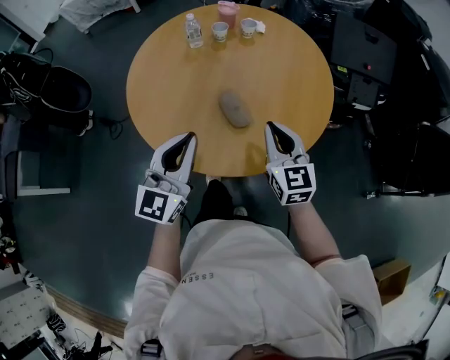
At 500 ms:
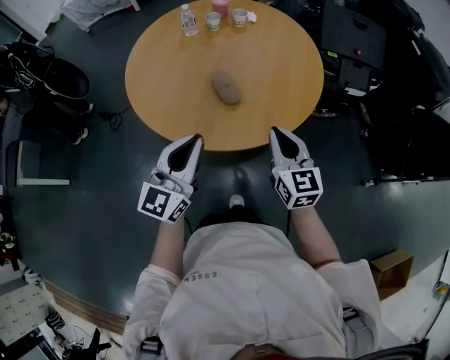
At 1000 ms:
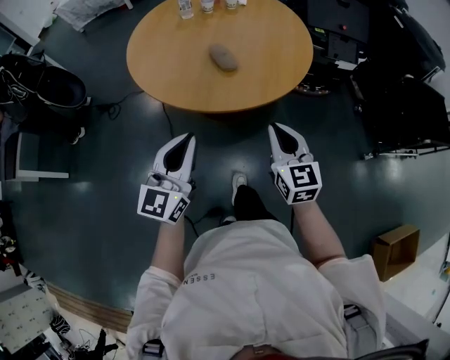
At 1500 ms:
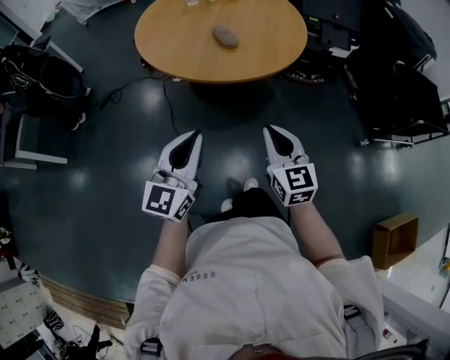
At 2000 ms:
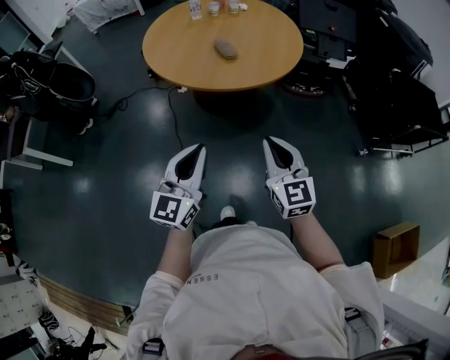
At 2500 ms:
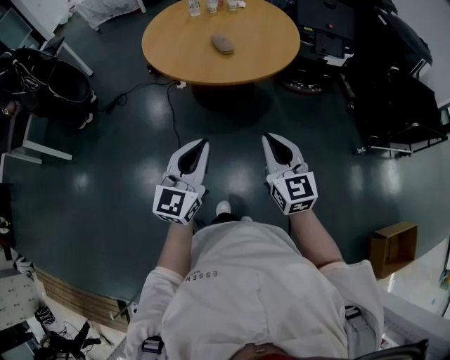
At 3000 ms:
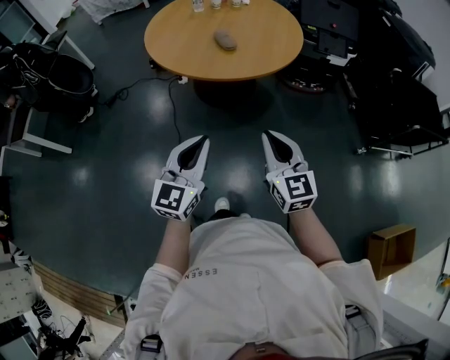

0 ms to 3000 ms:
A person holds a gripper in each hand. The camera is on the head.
0 ms to 1500 ms: Both grippers travel together backward, about 40 cm.
1500 ms to 3000 ms: The right gripper travels backward by some 10 cm. Meanwhile the left gripper is displaced backward and to the right by some 10 cm.

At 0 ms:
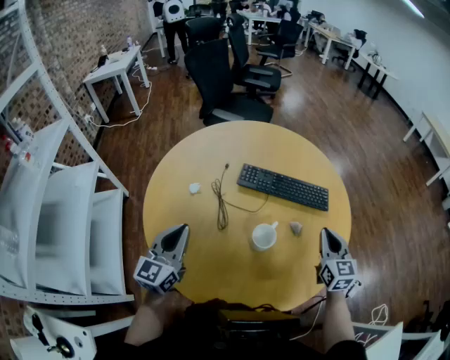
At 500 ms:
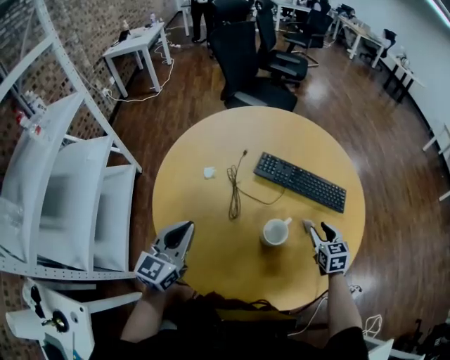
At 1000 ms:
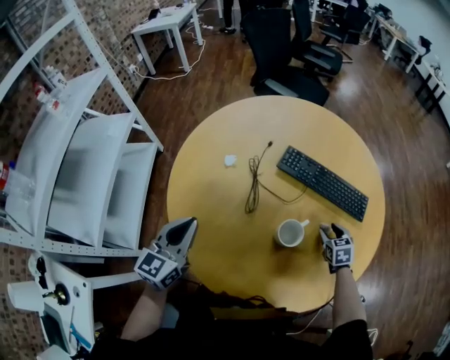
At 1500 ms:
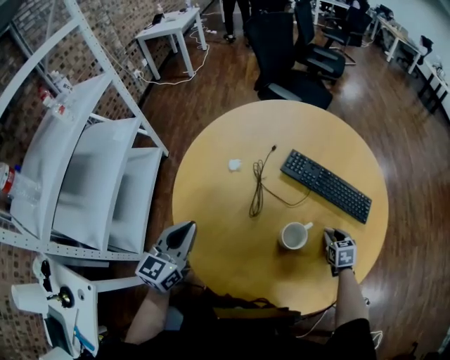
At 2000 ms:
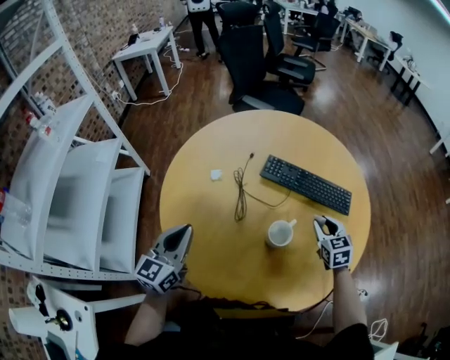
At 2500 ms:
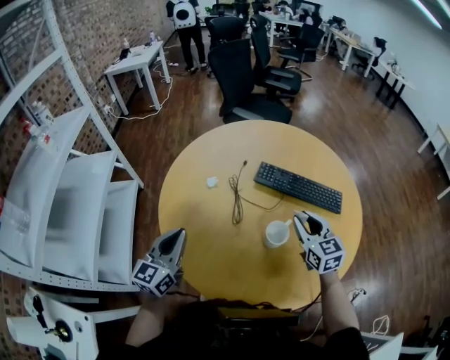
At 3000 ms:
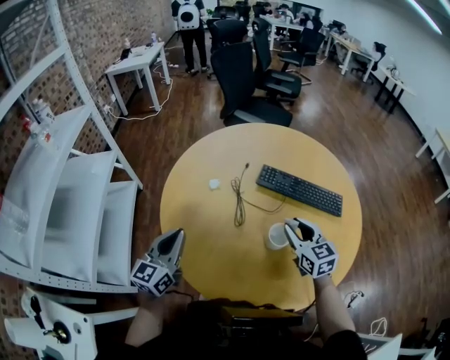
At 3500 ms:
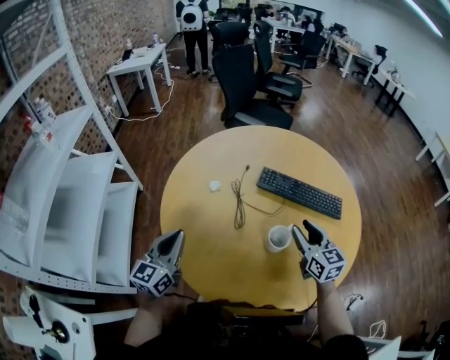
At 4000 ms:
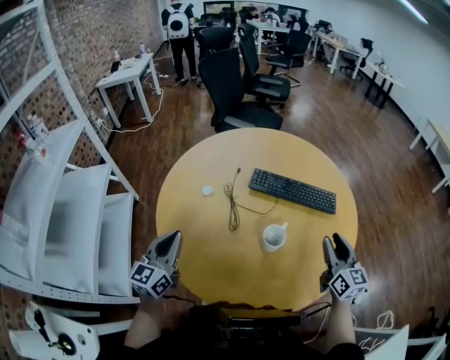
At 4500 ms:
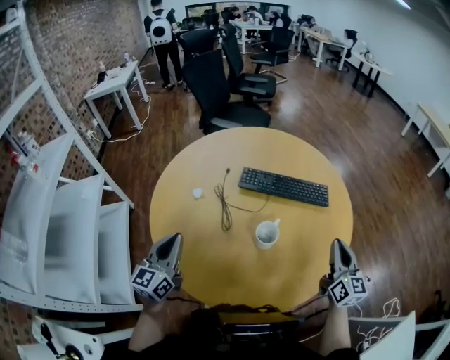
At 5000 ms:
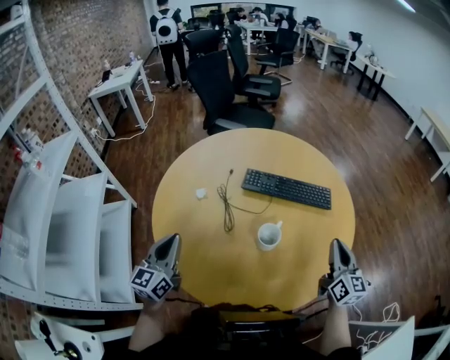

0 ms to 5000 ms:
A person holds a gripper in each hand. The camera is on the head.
0 ms to 2500 ms: The left gripper heads to the left, covering roughly 5 cm. Meanwhile the right gripper is displaced to the left by some 15 cm, travels downward and back again, approximately 20 cm each way, changes its angle by about 20 degrees, and opens.
2500 ms to 5000 ms: The right gripper moves to the right and backward, approximately 20 cm, turns by roughly 30 degrees, and closes up.

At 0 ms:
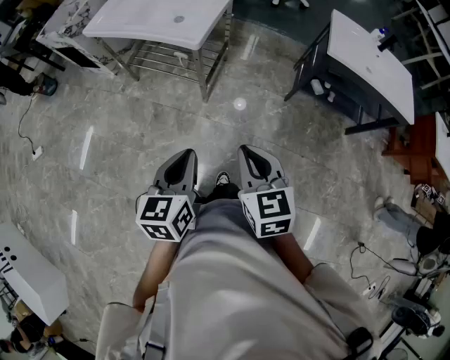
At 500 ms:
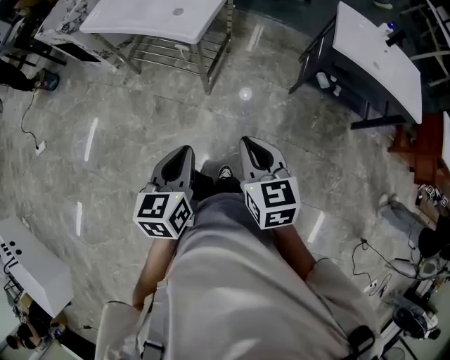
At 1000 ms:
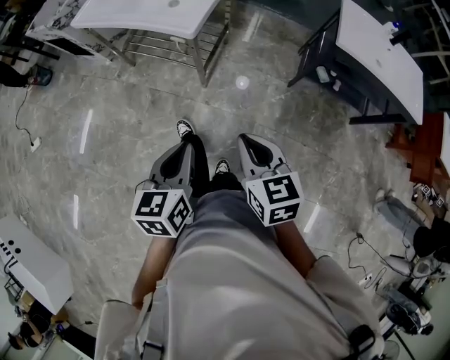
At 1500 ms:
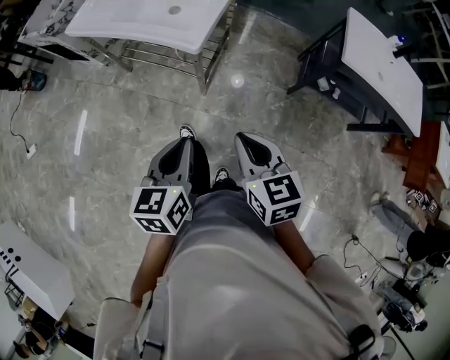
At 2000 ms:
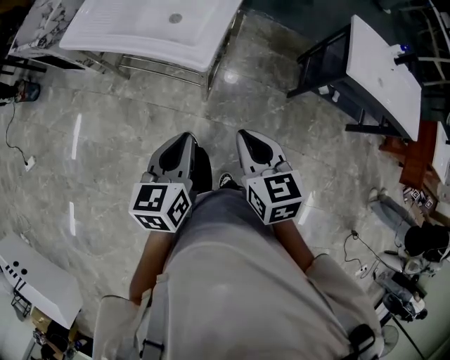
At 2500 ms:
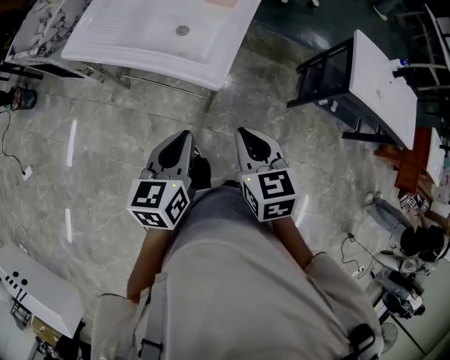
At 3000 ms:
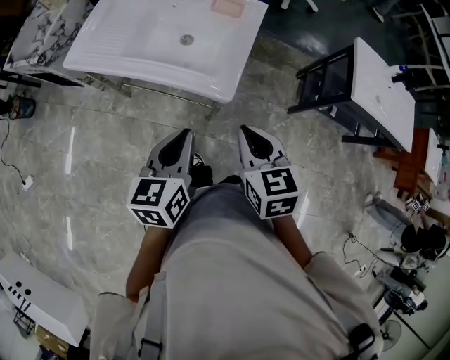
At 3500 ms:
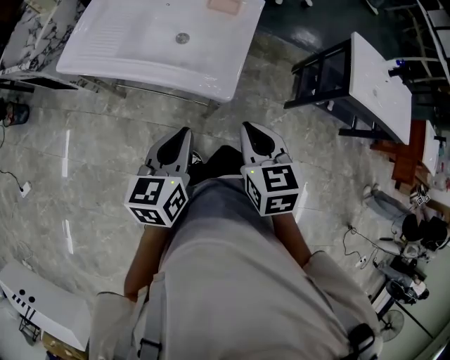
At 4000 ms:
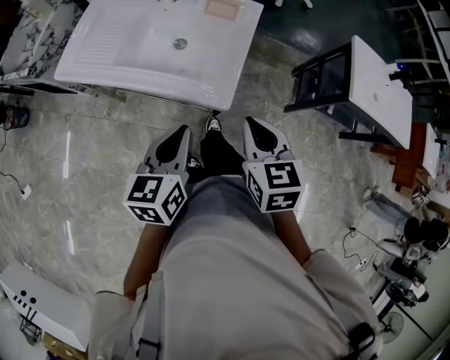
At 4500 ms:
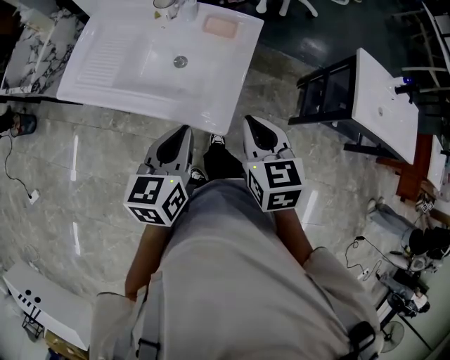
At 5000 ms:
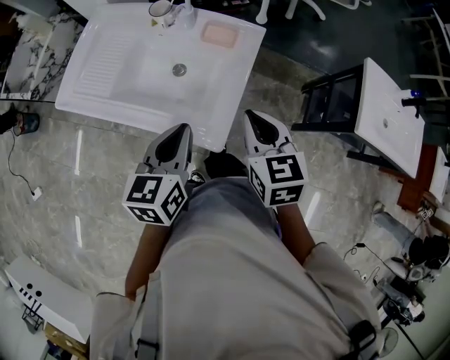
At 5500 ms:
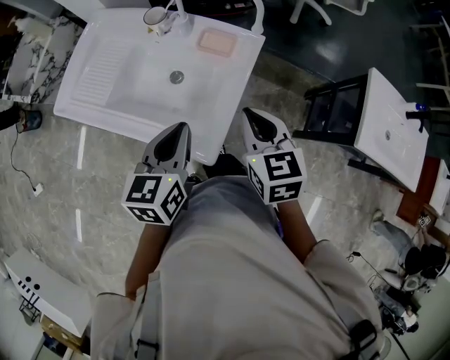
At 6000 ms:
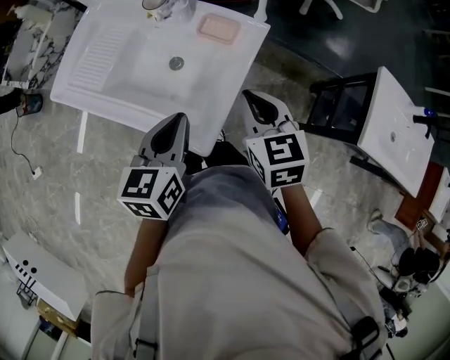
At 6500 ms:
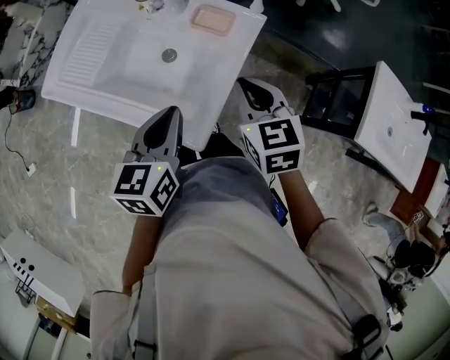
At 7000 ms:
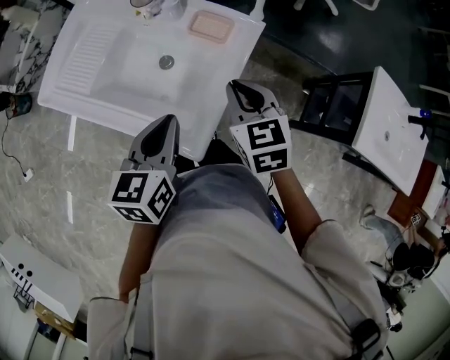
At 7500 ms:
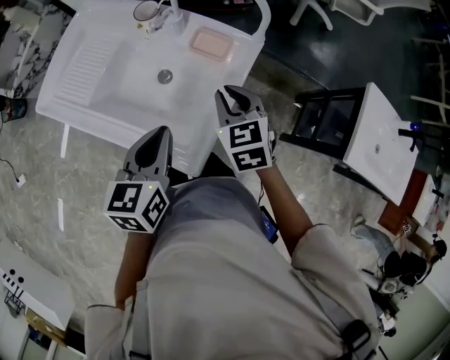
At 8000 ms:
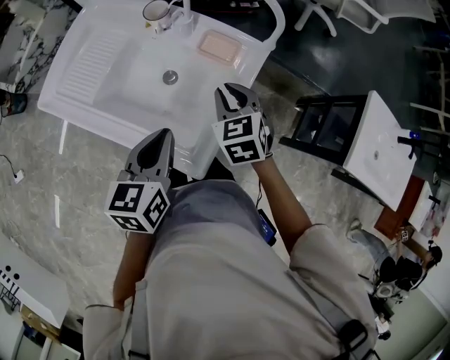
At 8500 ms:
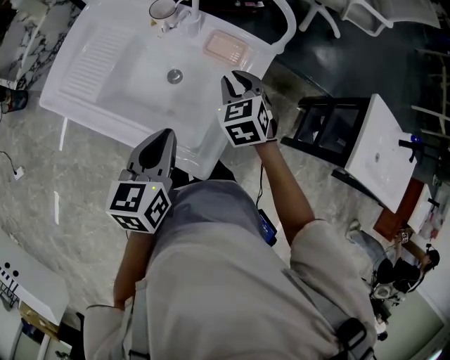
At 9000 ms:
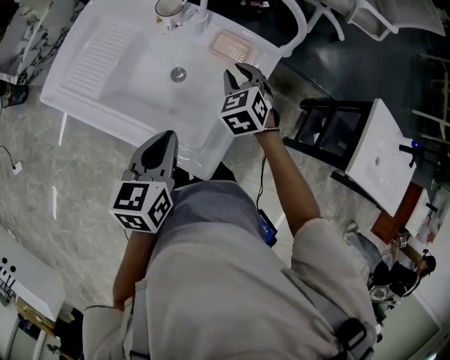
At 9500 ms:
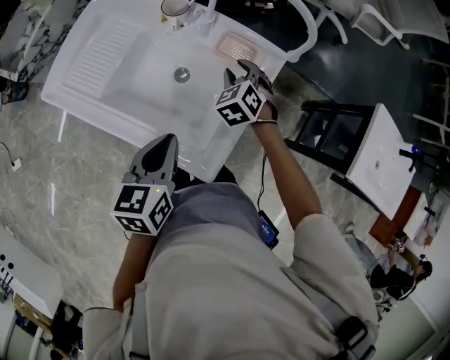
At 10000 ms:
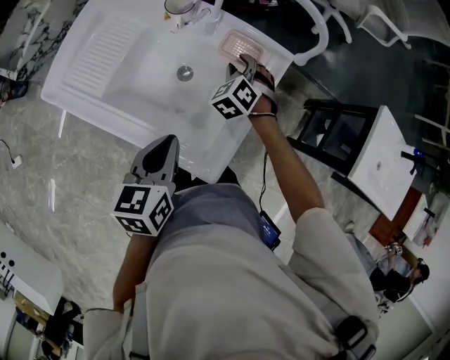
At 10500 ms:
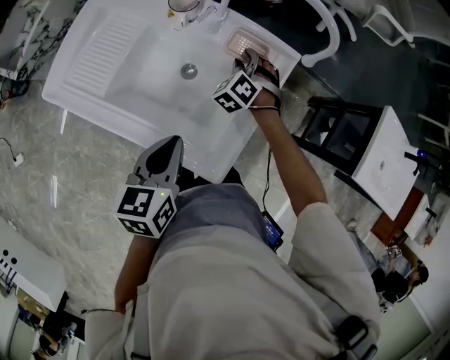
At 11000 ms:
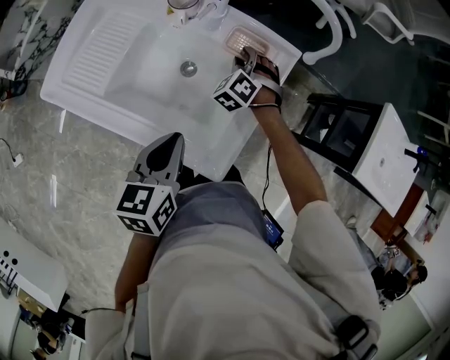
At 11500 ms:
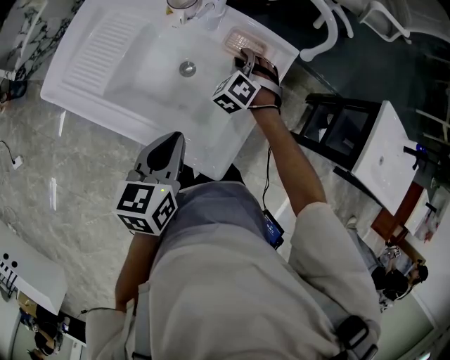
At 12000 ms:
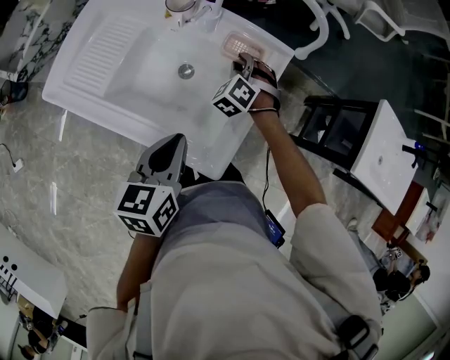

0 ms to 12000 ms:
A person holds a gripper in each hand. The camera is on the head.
0 ms to 2000 ms: The grippers both shift forward by roughly 25 cm.
2000 ms to 4000 ms: The grippers both shift forward and to the left by about 20 cm.
4000 ms to 6000 ms: The right gripper goes about 20 cm forward. The left gripper travels forward and to the right by approximately 20 cm.
6000 ms to 8000 ms: The left gripper ends up approximately 5 cm from where it was; the right gripper shifts roughly 10 cm forward and downward.
8000 ms to 10000 ms: The right gripper shifts about 15 cm forward and downward, and swivels some 30 degrees.
10000 ms to 12000 ms: The grippers stay close to where they were, moving slightly.

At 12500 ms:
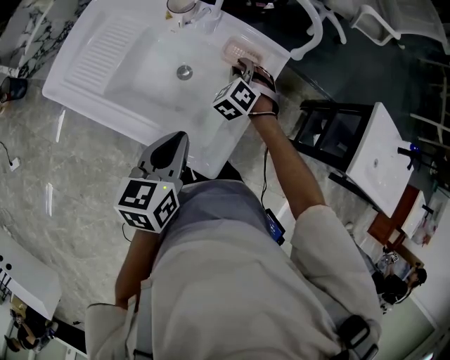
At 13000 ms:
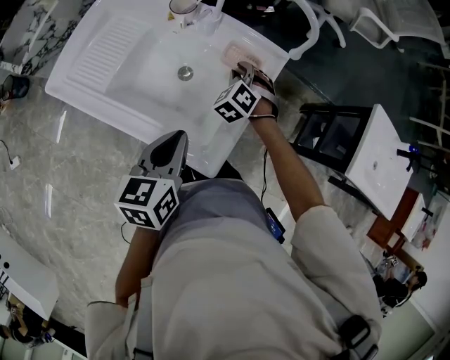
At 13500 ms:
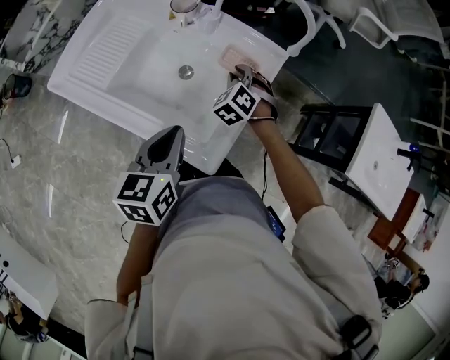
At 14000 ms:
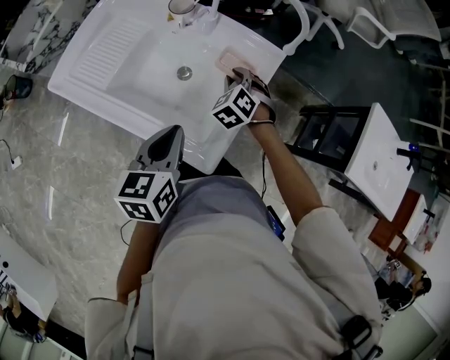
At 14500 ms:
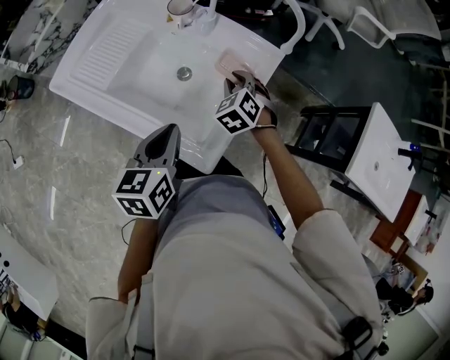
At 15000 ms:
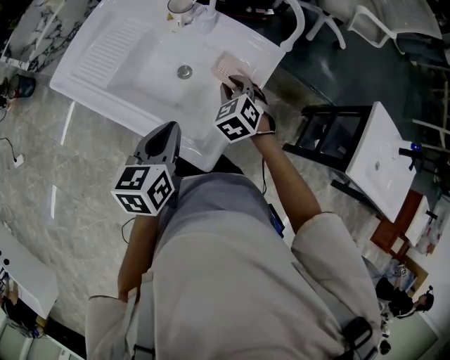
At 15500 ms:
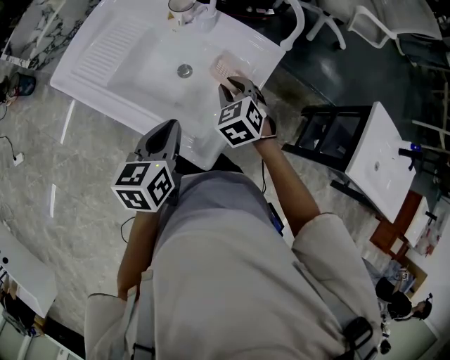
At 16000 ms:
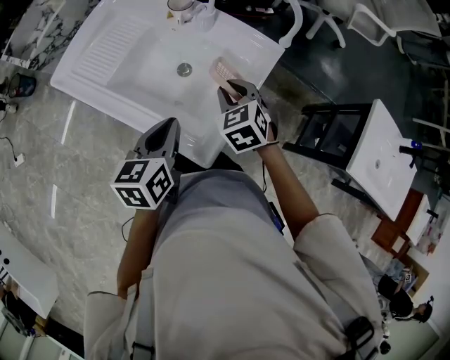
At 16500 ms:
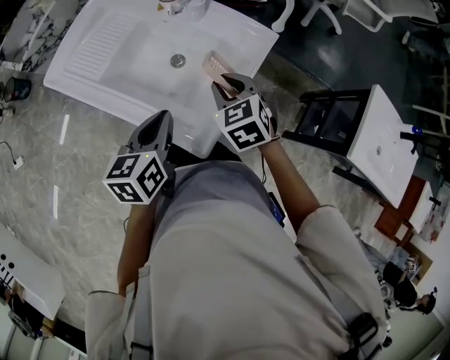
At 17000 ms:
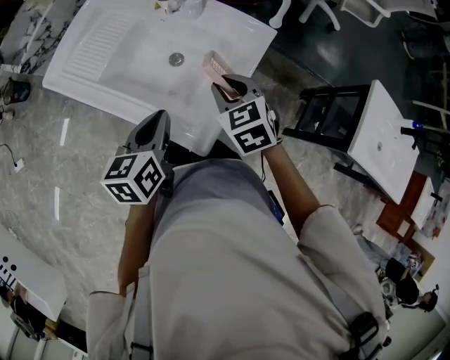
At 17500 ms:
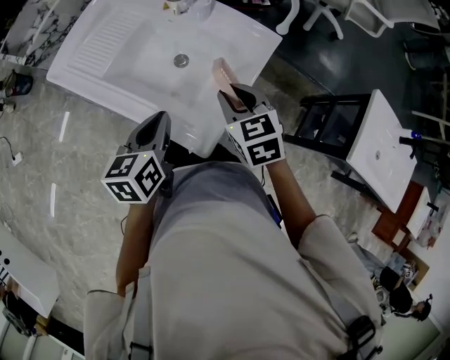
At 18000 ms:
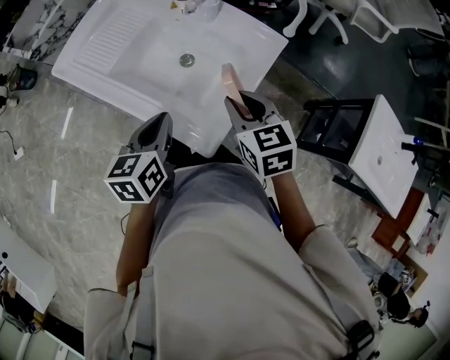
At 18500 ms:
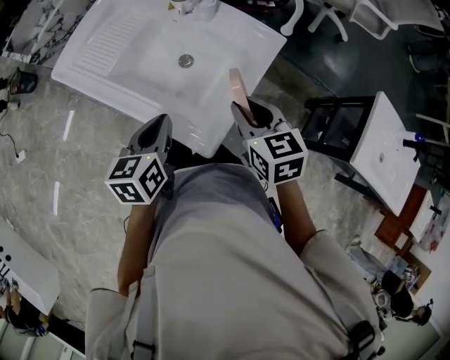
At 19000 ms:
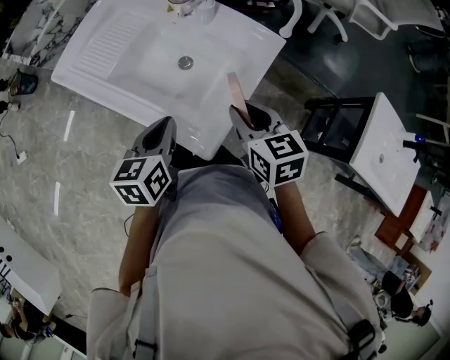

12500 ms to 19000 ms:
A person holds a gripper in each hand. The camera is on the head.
12500 ms to 14500 ms: The right gripper goes some 5 cm backward.
14500 ms to 17000 ms: The right gripper shifts about 10 cm backward and upward, and swivels some 20 degrees.
17000 ms to 19000 ms: The right gripper moves approximately 5 cm, and swivels roughly 20 degrees.
